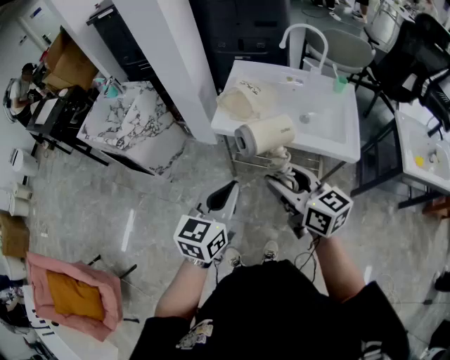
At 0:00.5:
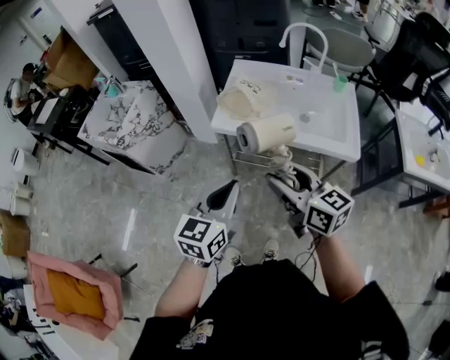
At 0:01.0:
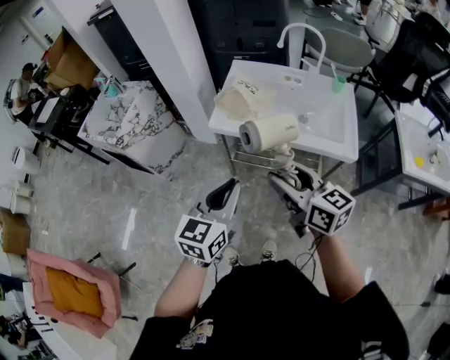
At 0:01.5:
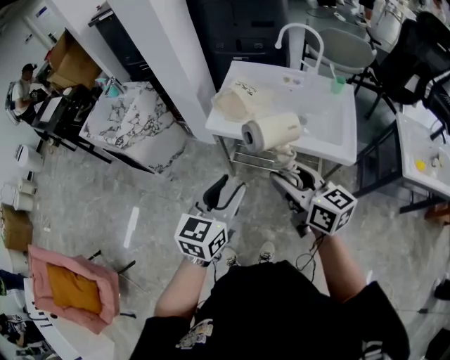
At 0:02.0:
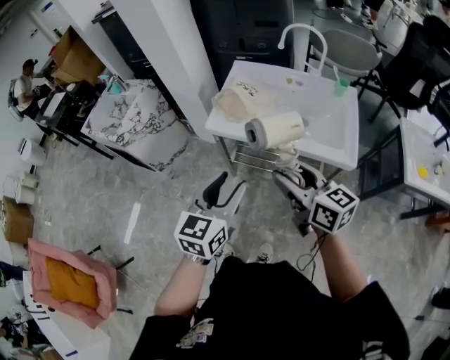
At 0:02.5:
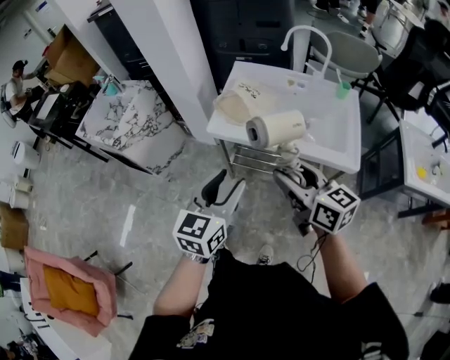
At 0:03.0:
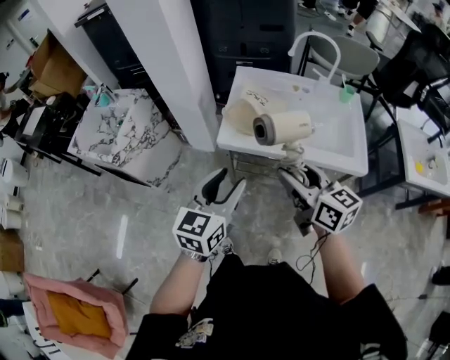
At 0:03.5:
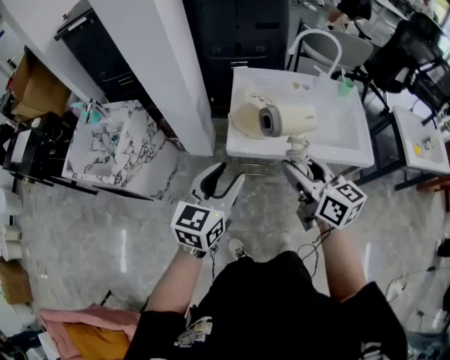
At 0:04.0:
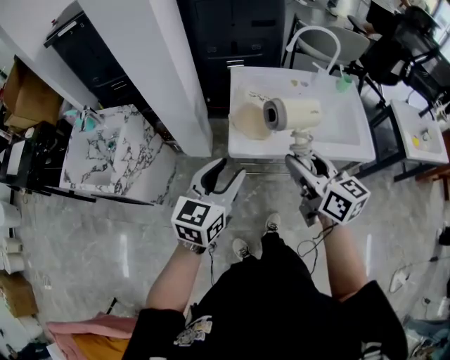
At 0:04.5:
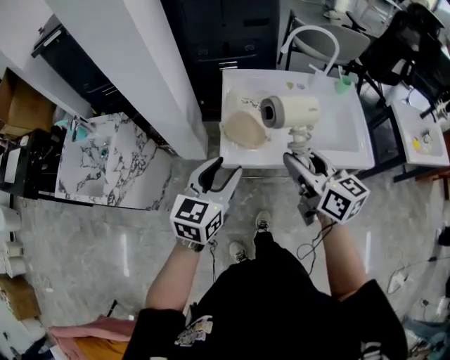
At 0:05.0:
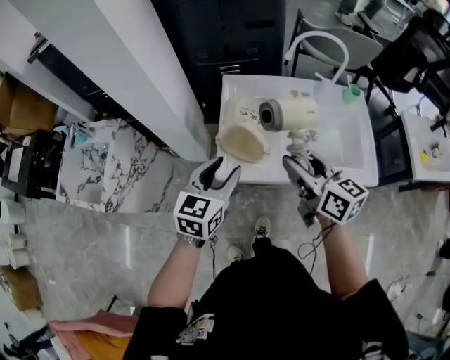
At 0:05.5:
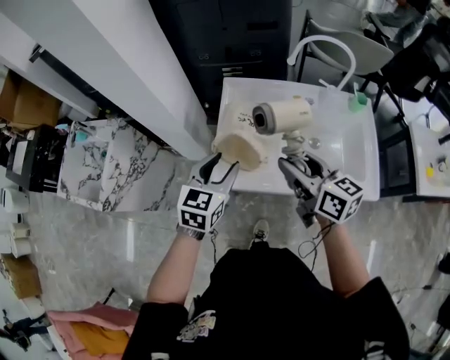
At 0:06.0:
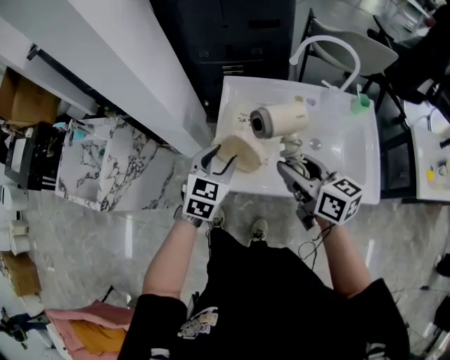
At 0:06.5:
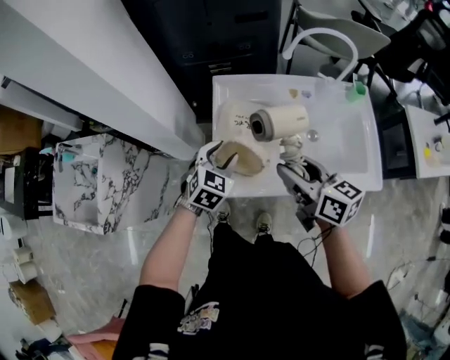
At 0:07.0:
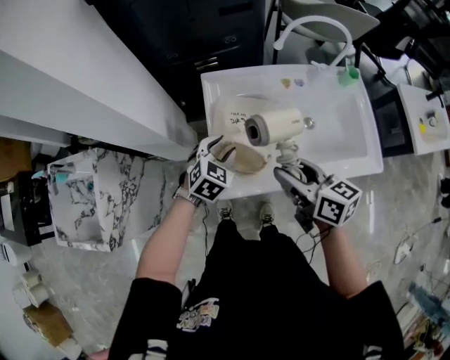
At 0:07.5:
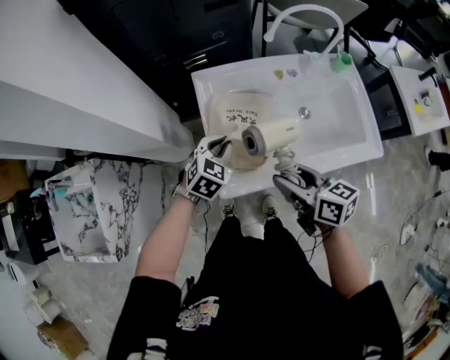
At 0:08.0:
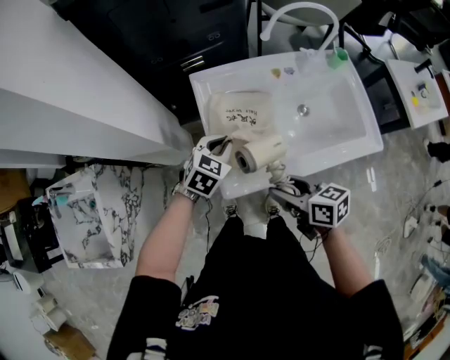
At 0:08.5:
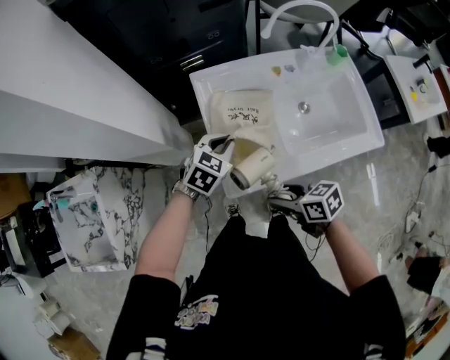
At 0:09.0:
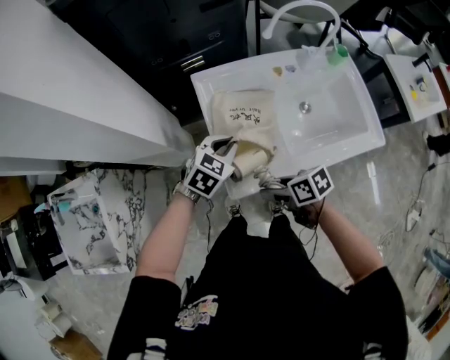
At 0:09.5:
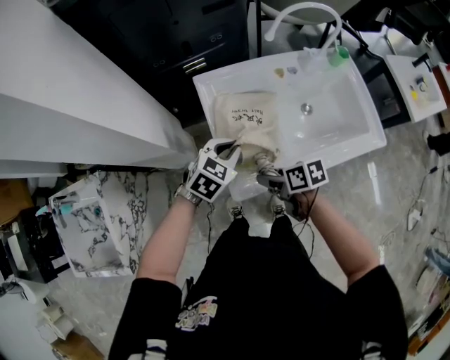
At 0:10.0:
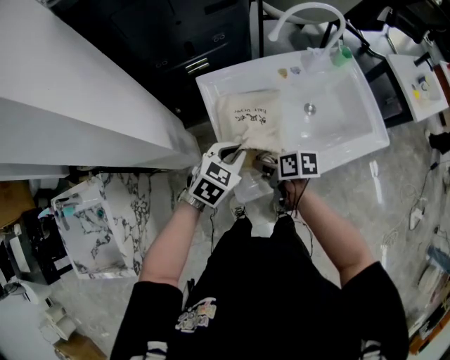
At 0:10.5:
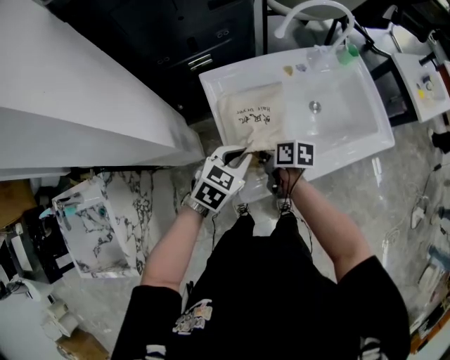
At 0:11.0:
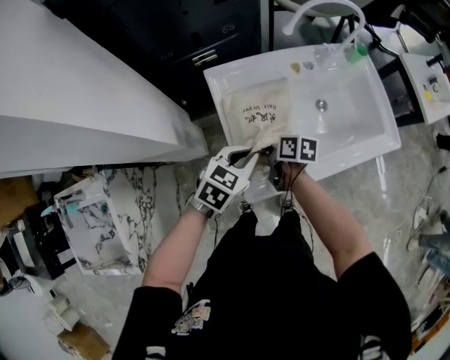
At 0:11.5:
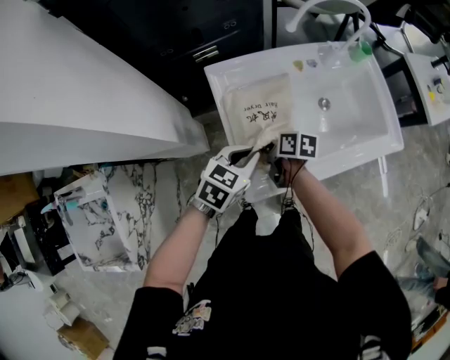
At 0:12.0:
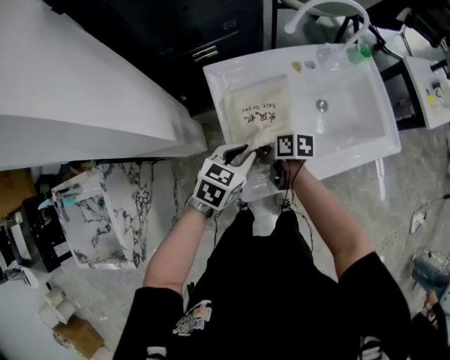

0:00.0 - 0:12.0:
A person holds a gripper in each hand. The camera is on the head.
0:00.0 - 0:02.0: The two grippers go approximately 5 cm to the right. The left gripper opens.
0:02.0 - 0:04.0: Both grippers move to the left and forward, roughly 25 cm. The right gripper rotates about 20 degrees.
0:04.0 - 0:06.0: The right gripper shifts approximately 20 cm forward and to the right, while the left gripper shifts about 25 cm forward and downward, and rotates approximately 20 degrees.
0:06.0 - 0:08.0: The right gripper heads downward, to the left and backward, covering roughly 15 cm, and rotates about 20 degrees, while the left gripper is displaced downward and forward by about 10 cm, turns by approximately 30 degrees, and closes its fingers.
0:08.0 - 0:10.0: The right gripper is displaced downward, forward and to the left by roughly 15 cm, and turns by about 30 degrees.
0:10.0 - 0:12.0: The right gripper heads forward, covering approximately 5 cm.

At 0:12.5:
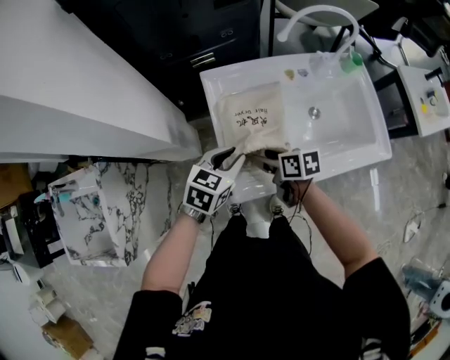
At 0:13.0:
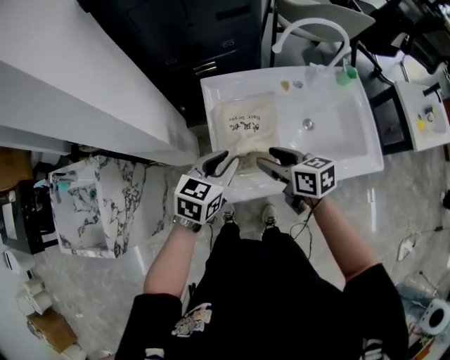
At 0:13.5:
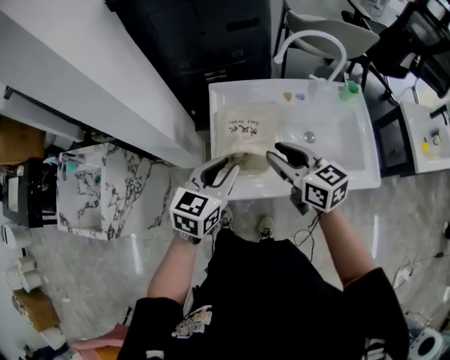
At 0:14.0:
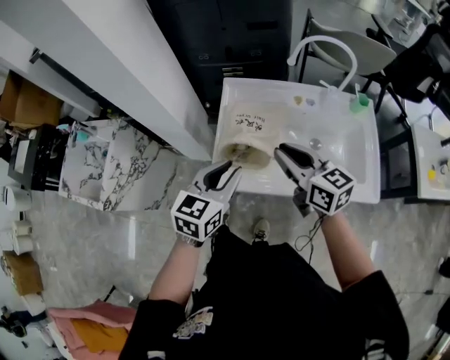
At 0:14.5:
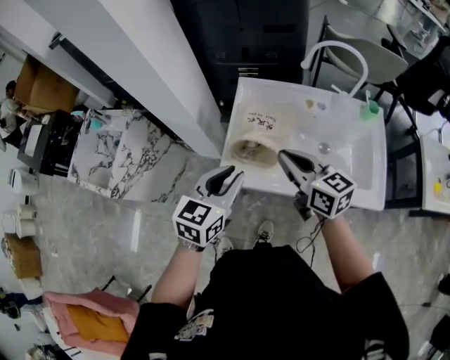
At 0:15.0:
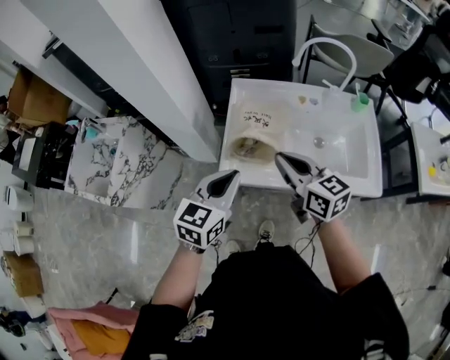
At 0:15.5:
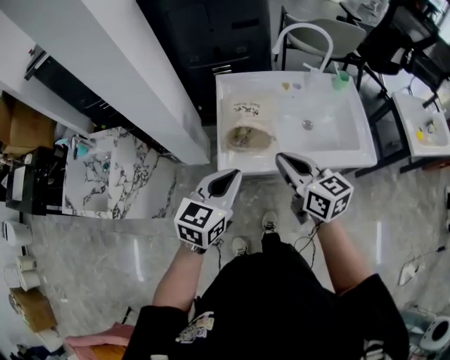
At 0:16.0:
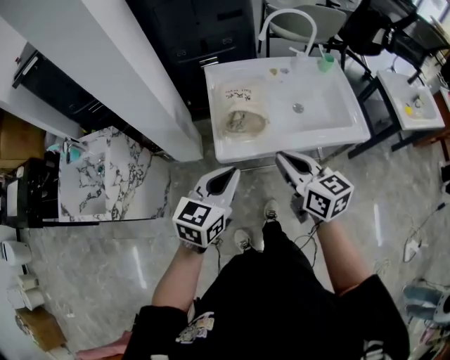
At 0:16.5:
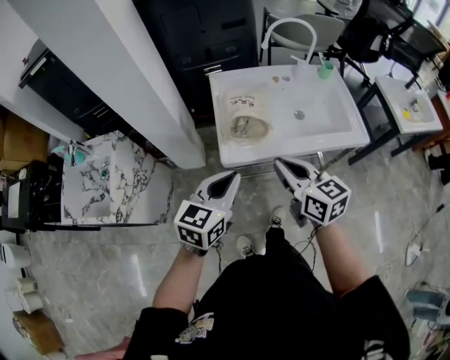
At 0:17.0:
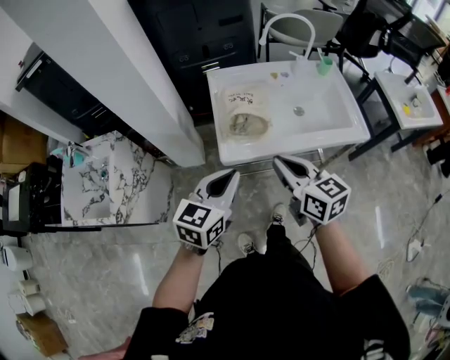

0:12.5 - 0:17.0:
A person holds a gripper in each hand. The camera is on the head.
0:12.5 - 0:14.5: The right gripper is displaced upward by about 20 cm, changes its angle by about 50 degrees, and closes up. The left gripper travels backward and upward by about 20 cm, and rotates some 30 degrees.
0:14.5 - 0:17.0: The left gripper travels backward and to the left by roughly 15 cm, and closes up, while the right gripper goes roughly 15 cm backward, and swivels roughly 20 degrees.

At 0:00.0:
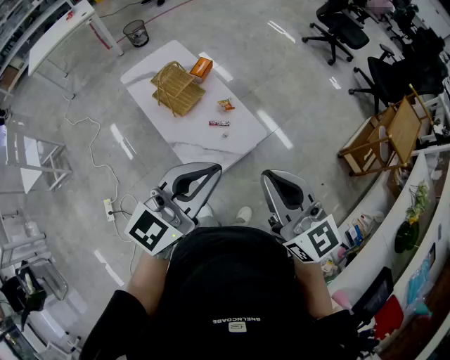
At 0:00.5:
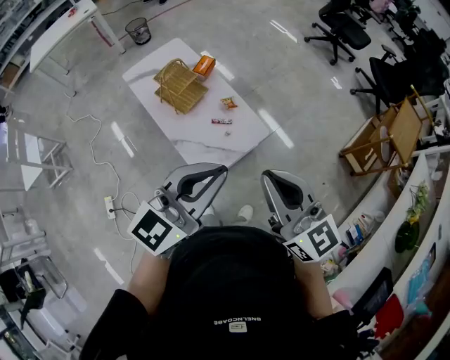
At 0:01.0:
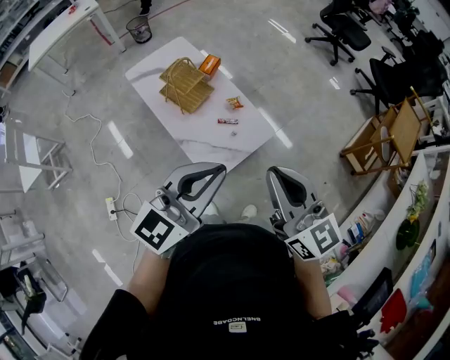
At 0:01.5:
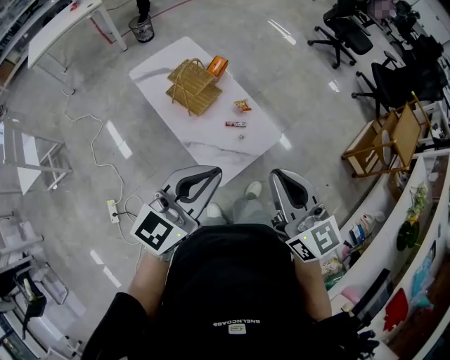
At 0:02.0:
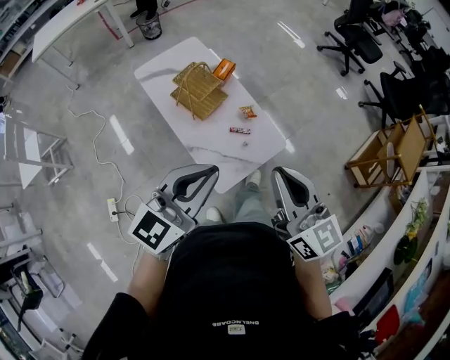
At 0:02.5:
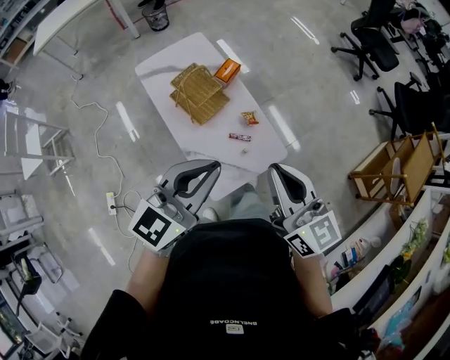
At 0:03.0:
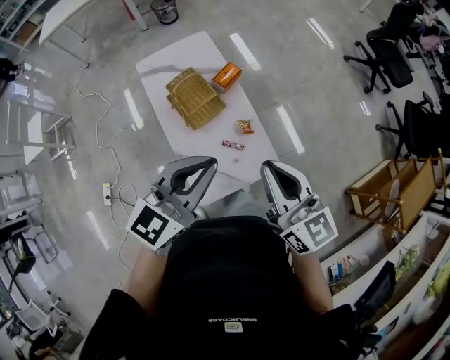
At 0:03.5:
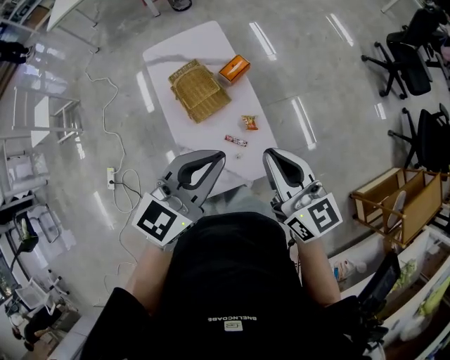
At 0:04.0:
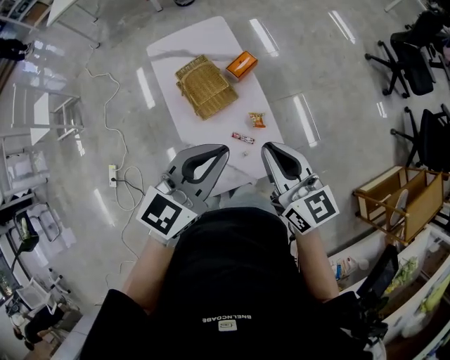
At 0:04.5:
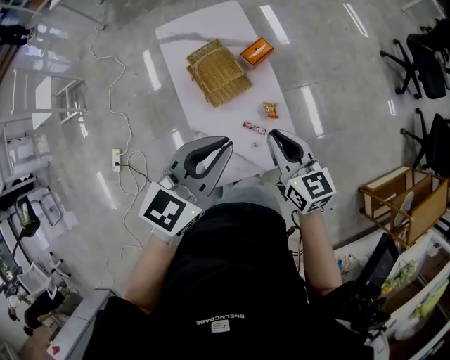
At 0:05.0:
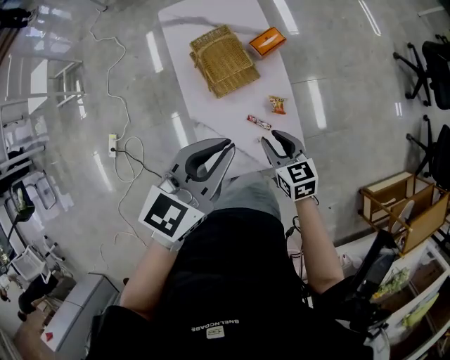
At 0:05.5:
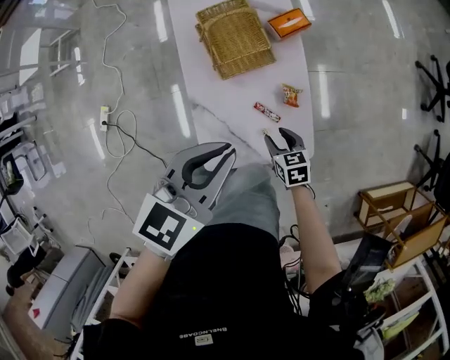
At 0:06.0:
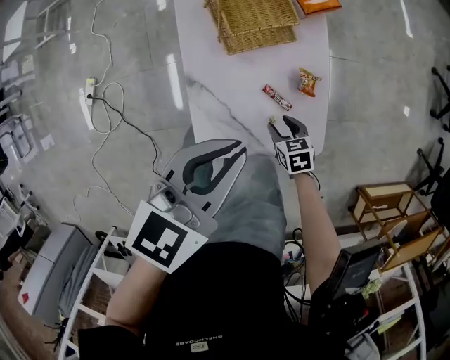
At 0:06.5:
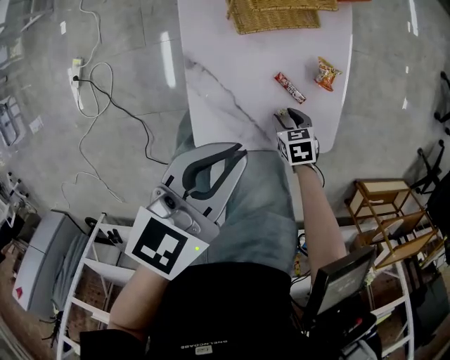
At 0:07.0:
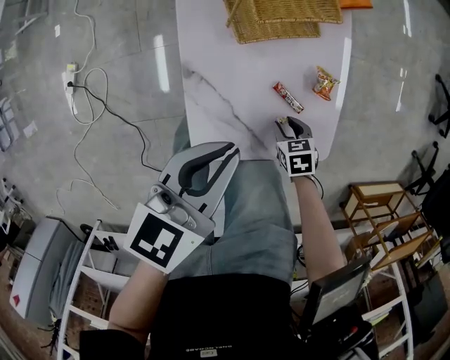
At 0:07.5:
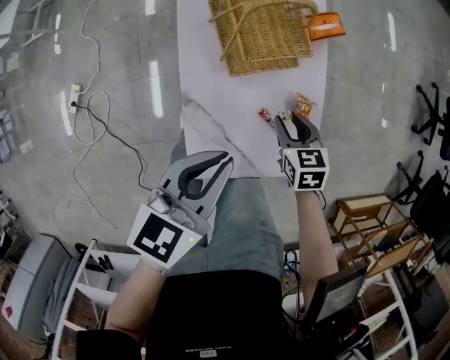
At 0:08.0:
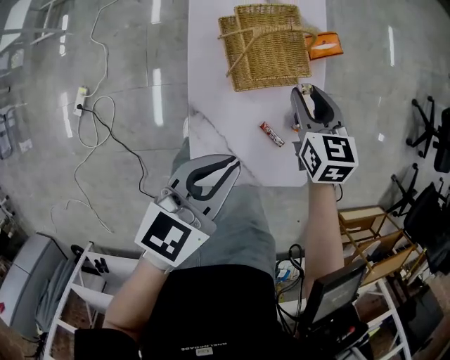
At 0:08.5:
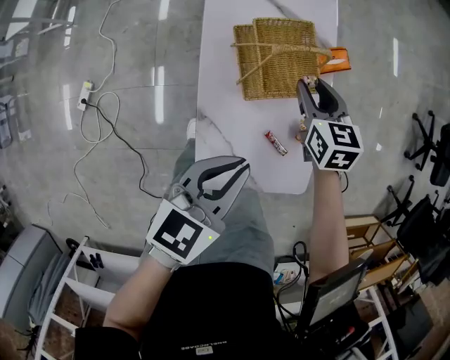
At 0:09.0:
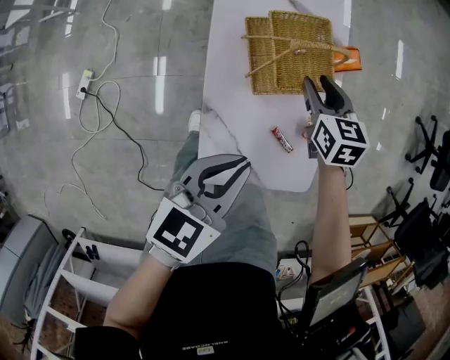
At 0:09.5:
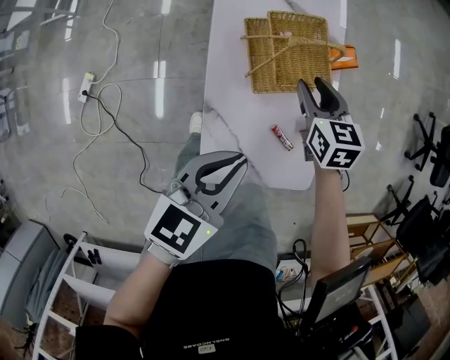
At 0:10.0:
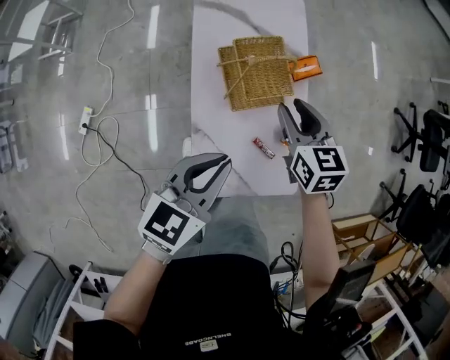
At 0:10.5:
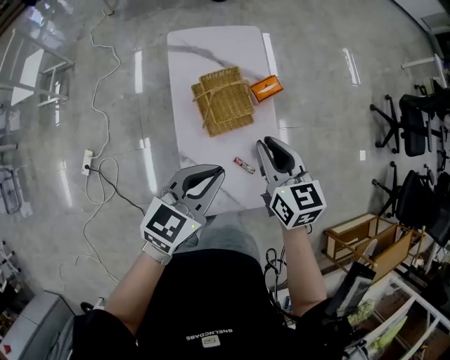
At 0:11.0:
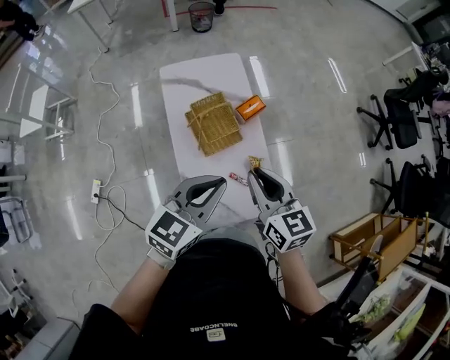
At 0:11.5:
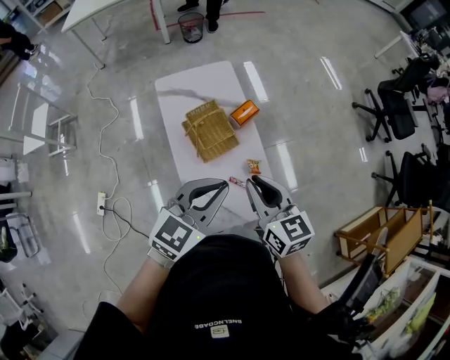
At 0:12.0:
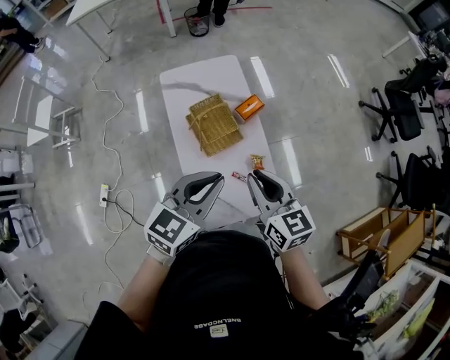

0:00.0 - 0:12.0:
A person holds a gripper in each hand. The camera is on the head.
0:00.0 - 0:02.0: The left gripper travels to the left by some 15 cm; the right gripper travels to the left and forward by some 10 cm.
0:02.0 - 0:04.0: The left gripper is displaced forward and to the right by some 25 cm, while the right gripper heads forward, covering some 25 cm, and turns by about 20 degrees.
0:04.0 - 0:06.0: The left gripper shifts approximately 25 cm downward, and turns by about 30 degrees; the right gripper travels downward by some 50 cm, tilts its fingers some 50 degrees downward, and opens up.
0:06.0 - 0:08.0: The right gripper moves forward and upward, roughly 30 cm, and turns by some 30 degrees; the left gripper moves to the left, roughly 5 cm, and moves some 10 cm downward and comes back.
0:08.0 - 0:10.0: The left gripper travels upward by some 5 cm; the right gripper moves upward, about 10 cm.
0:10.0 - 0:12.0: The left gripper is displaced upward and to the right by about 20 cm. The right gripper shifts approximately 25 cm upward, backward and to the right, and closes up.
